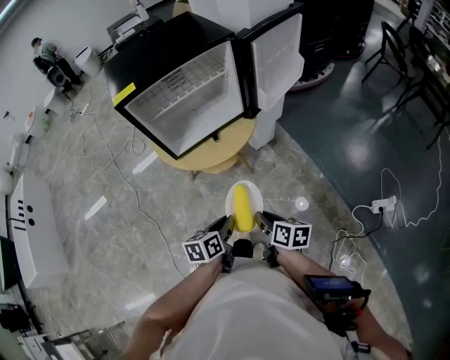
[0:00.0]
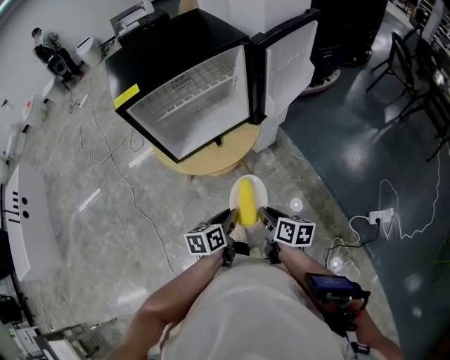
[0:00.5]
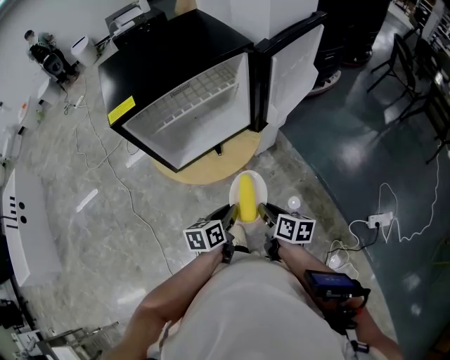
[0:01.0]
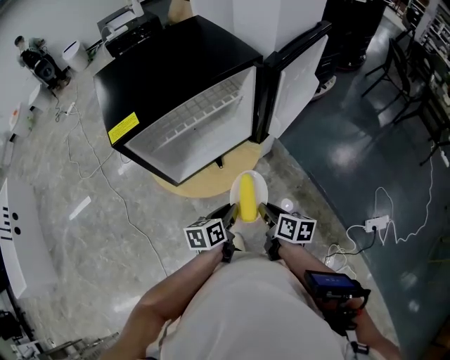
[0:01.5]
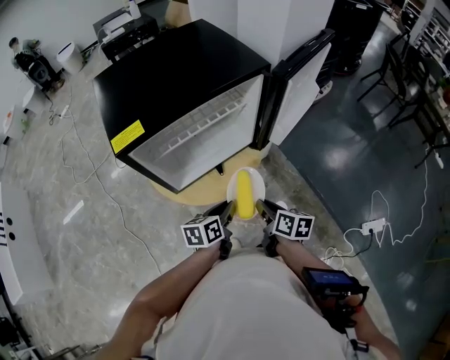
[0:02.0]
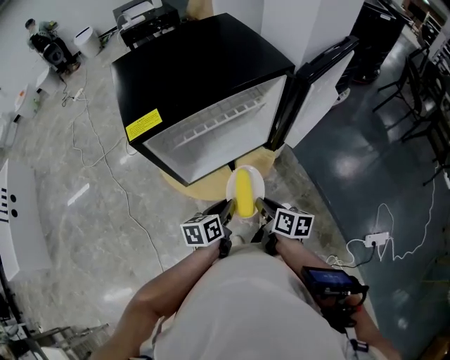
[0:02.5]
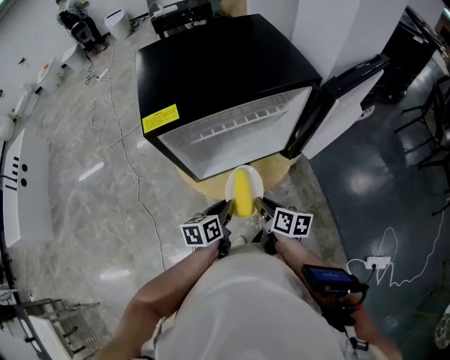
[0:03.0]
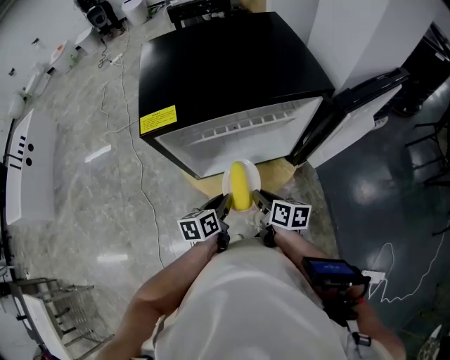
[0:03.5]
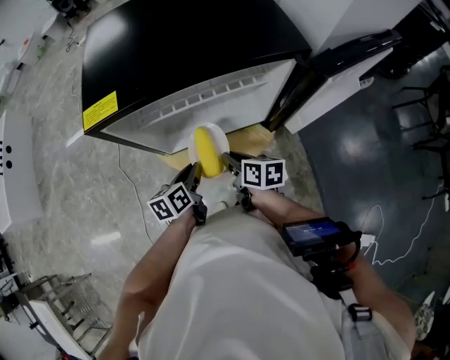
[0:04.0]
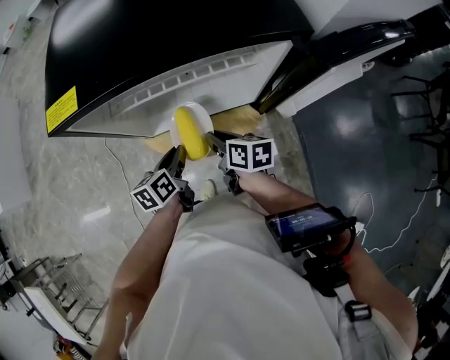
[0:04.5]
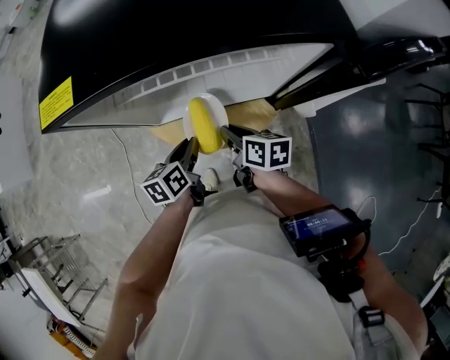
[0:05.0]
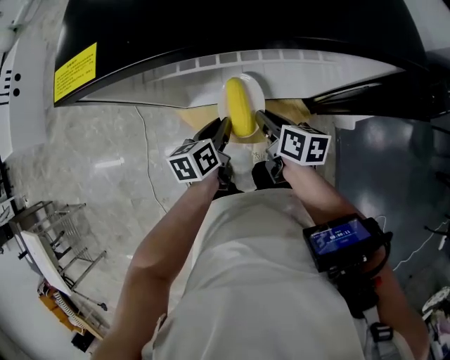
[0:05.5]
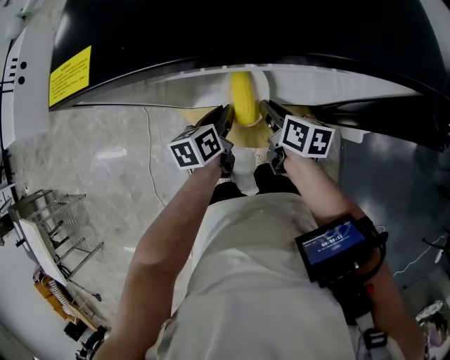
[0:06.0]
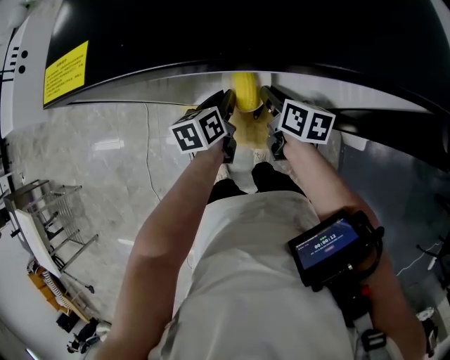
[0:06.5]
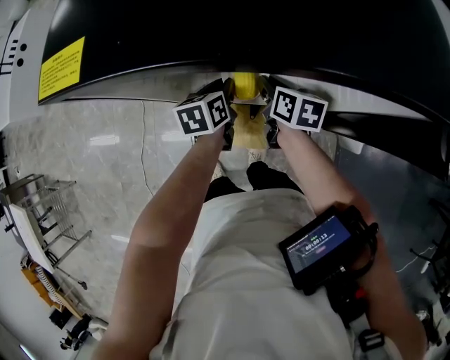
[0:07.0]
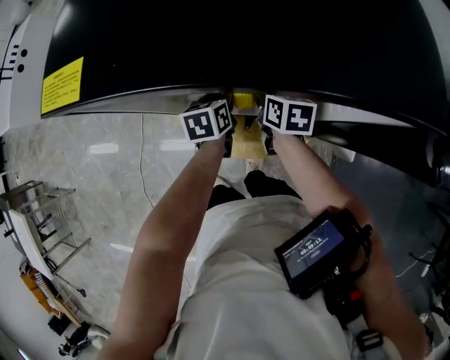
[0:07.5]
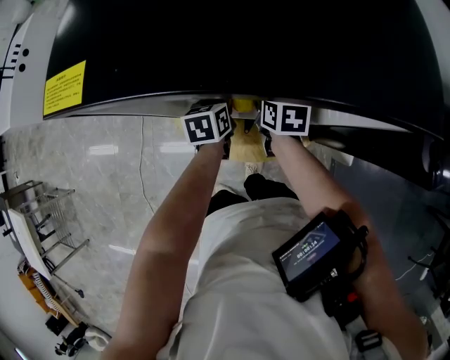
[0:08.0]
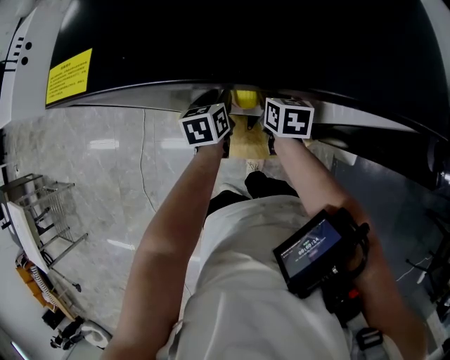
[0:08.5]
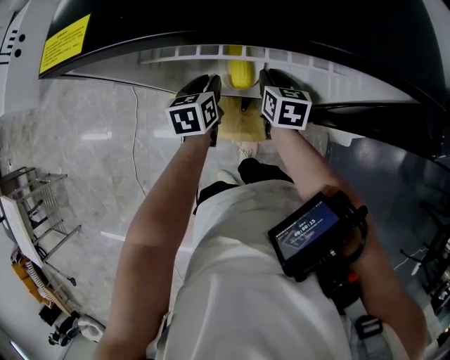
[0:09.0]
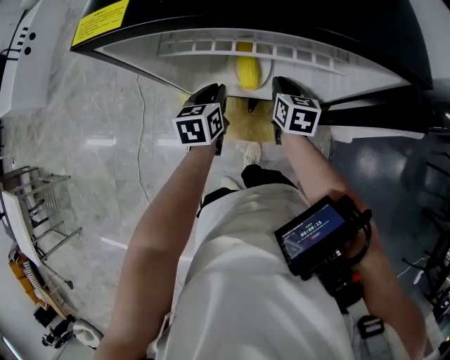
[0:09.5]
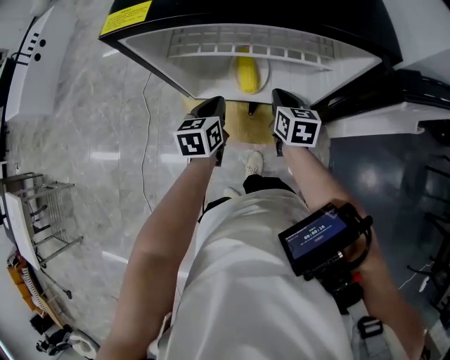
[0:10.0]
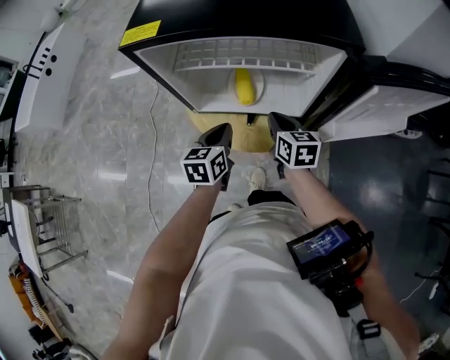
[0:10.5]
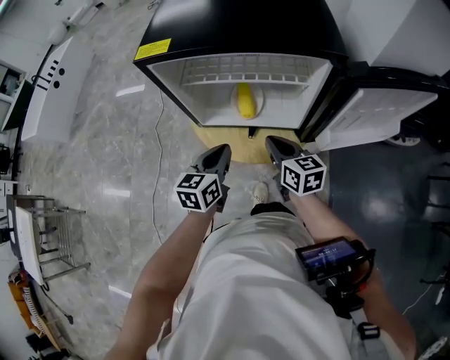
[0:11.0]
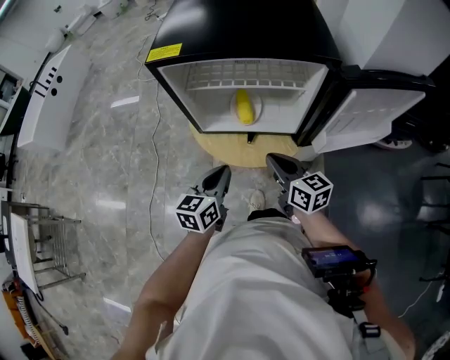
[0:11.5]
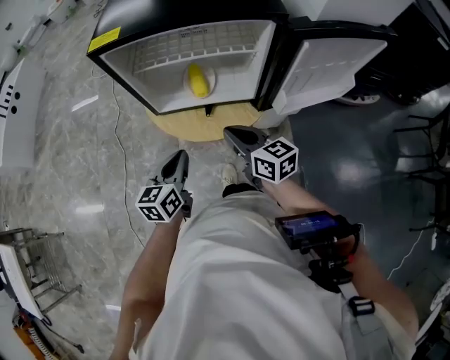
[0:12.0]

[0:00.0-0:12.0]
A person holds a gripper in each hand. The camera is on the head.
0:00.0 to 0:02.0: Both grippers move forward, some 20 cm.
0:02.0 to 0:04.0: The left gripper moves roughly 10 cm, and turns by approximately 30 degrees, while the right gripper moves approximately 15 cm, and swivels some 30 degrees.
0:04.0 to 0:06.0: The two grippers go about 10 cm forward and downward.
0:06.0 to 0:08.0: The two grippers go roughly 10 cm forward. The right gripper changes its angle by about 20 degrees.
0:08.0 to 0:10.0: Both grippers travel together backward and upward, some 10 cm.
0:10.0 to 0:12.0: The left gripper travels backward by roughly 20 cm; the right gripper heads backward and upward, covering approximately 20 cm, and swivels some 30 degrees.

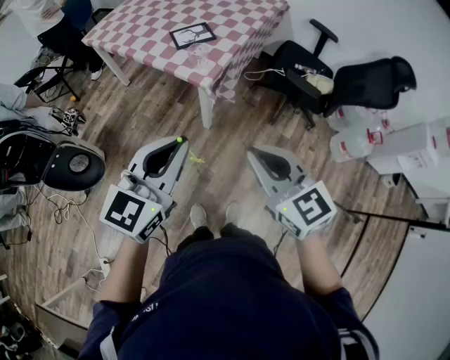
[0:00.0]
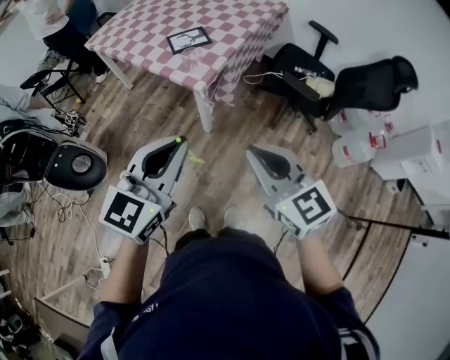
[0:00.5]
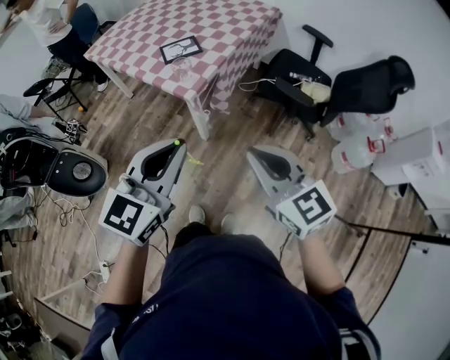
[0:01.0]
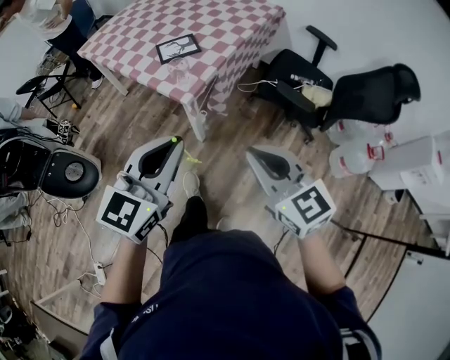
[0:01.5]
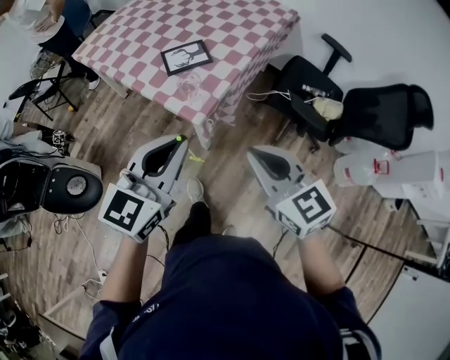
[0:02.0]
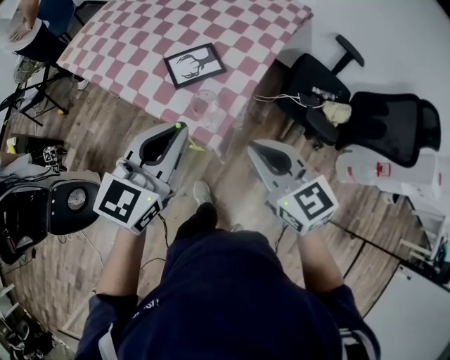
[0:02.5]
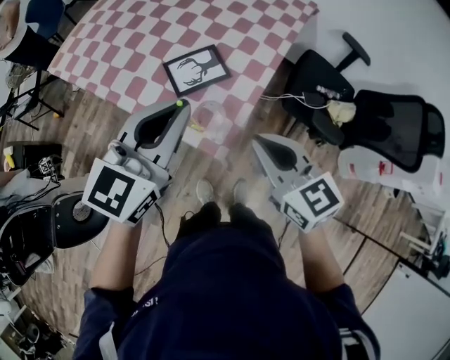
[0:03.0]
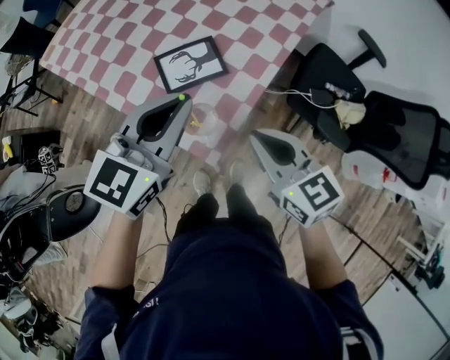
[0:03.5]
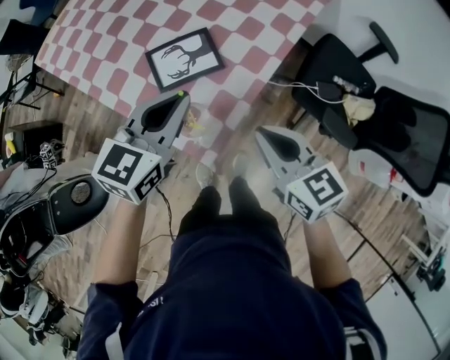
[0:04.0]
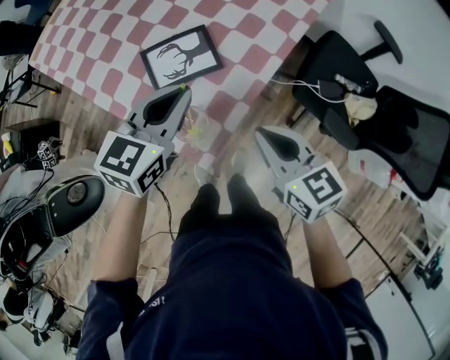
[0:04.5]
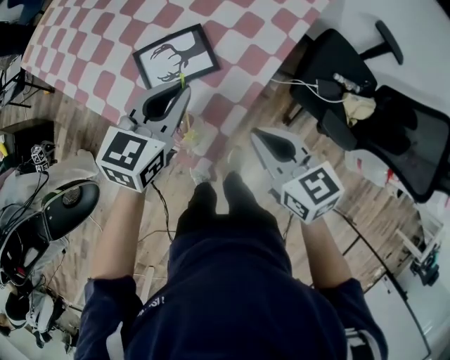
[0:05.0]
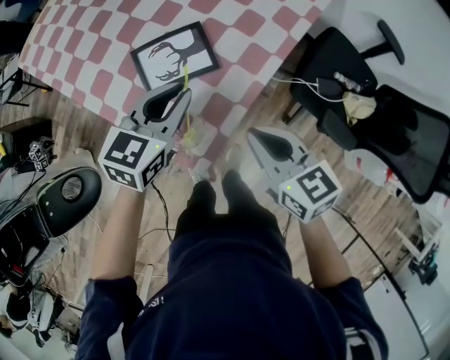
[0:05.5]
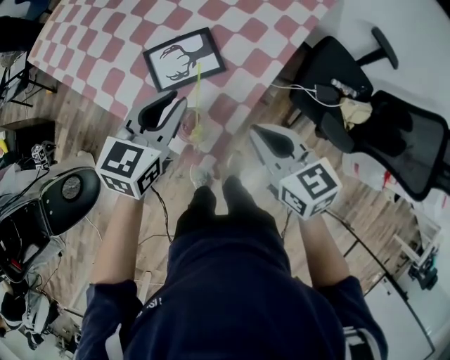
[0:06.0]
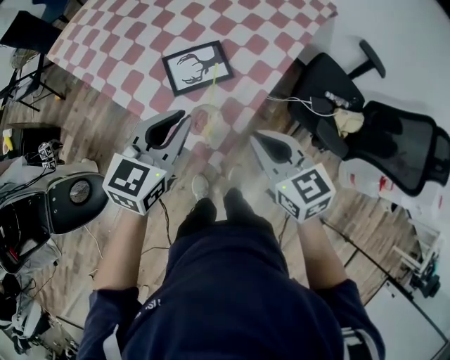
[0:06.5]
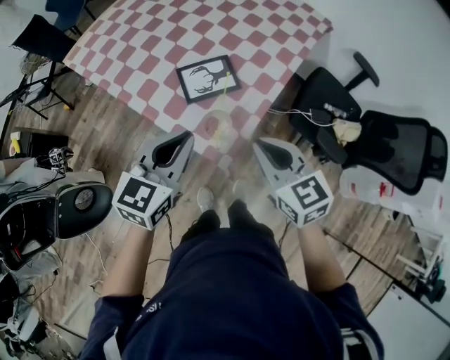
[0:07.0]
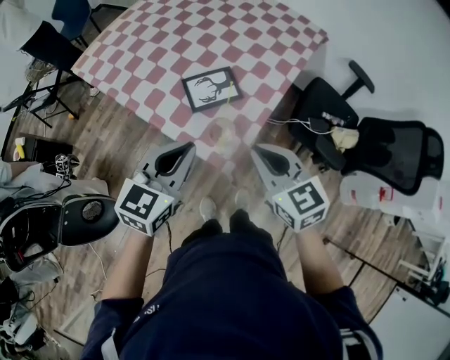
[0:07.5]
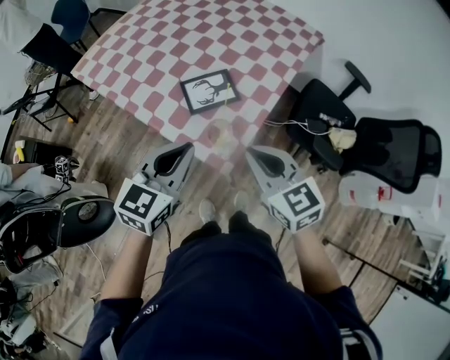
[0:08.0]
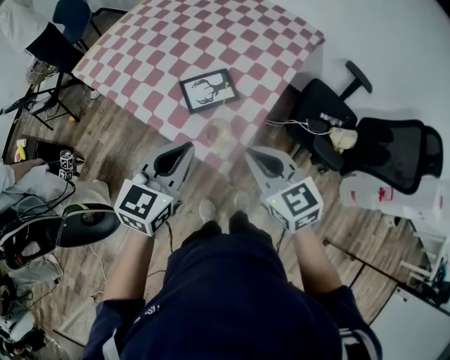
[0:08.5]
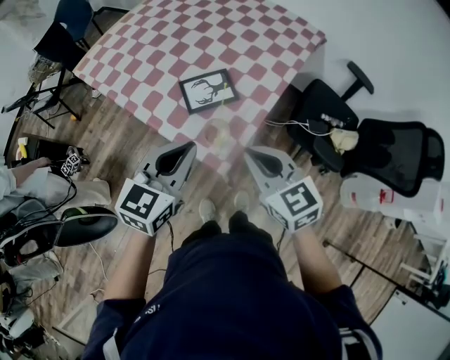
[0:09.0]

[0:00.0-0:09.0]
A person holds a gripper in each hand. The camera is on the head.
0:00.0 to 0:02.0: The two grippers go approximately 20 cm forward.
0:02.0 to 0:04.5: Both grippers move forward and downward, roughly 35 cm. The right gripper swivels roughly 20 degrees.
0:04.5 to 0:07.0: The left gripper heads backward, to the left and upward, covering about 15 cm. Meanwhile the right gripper travels upward, to the left and backward by about 15 cm.
0:07.0 to 0:09.0: The grippers make only small movements.

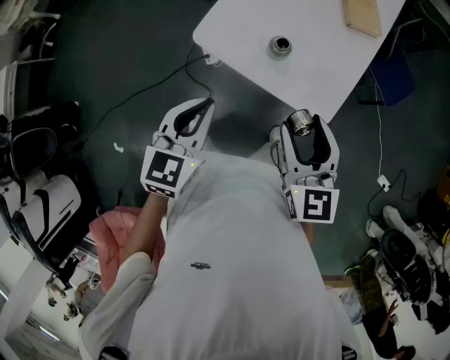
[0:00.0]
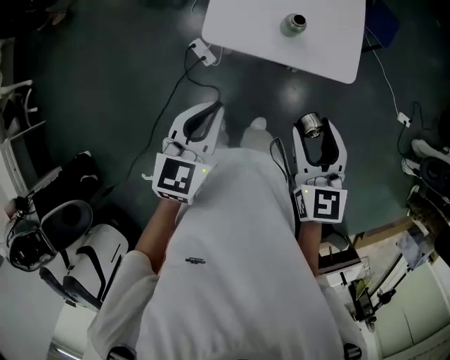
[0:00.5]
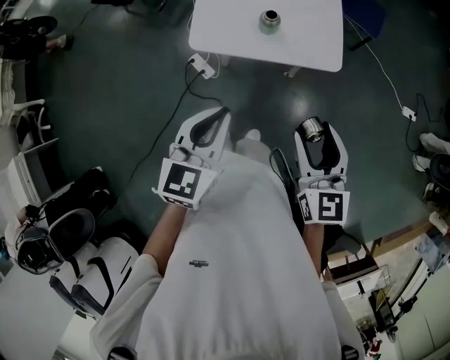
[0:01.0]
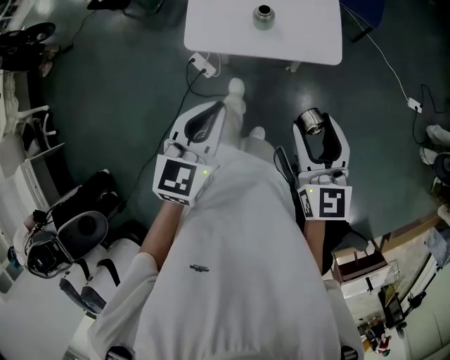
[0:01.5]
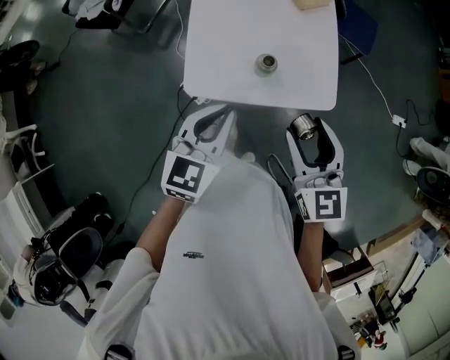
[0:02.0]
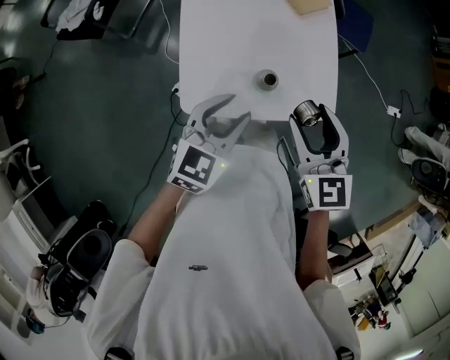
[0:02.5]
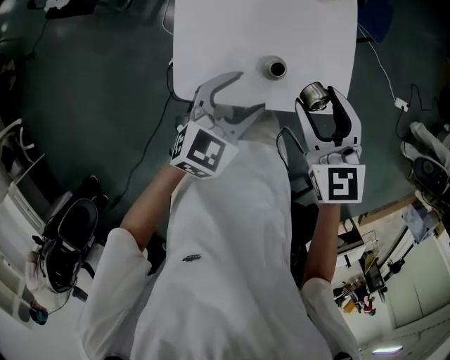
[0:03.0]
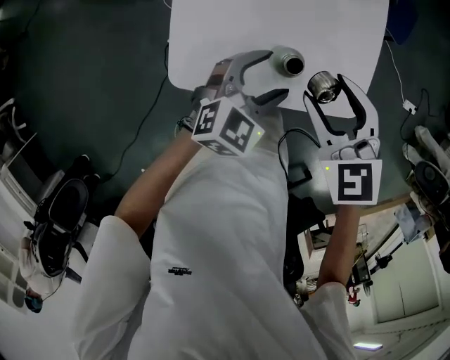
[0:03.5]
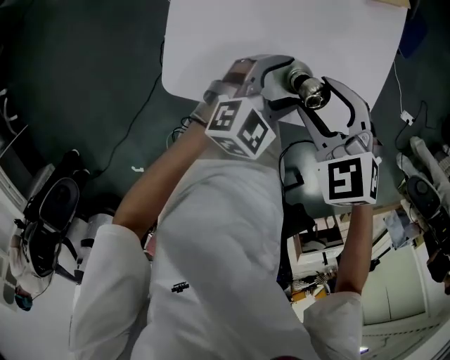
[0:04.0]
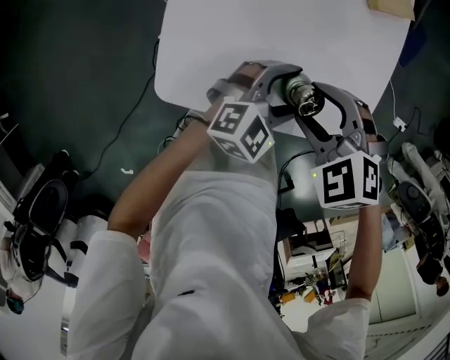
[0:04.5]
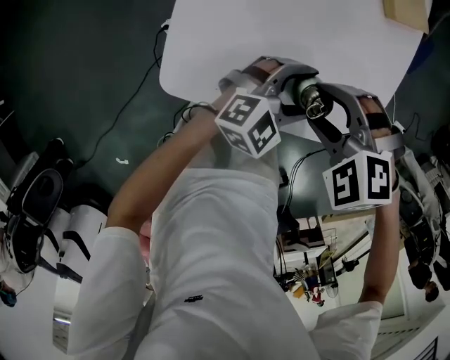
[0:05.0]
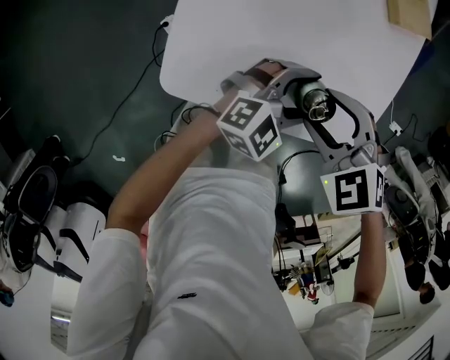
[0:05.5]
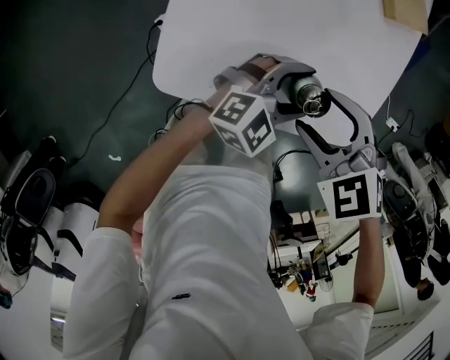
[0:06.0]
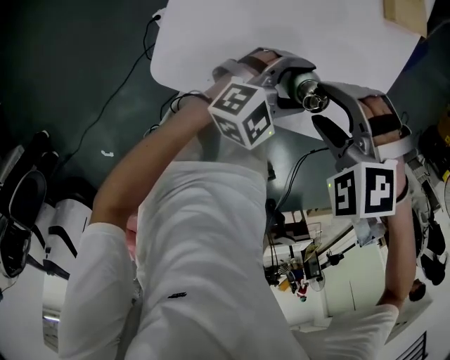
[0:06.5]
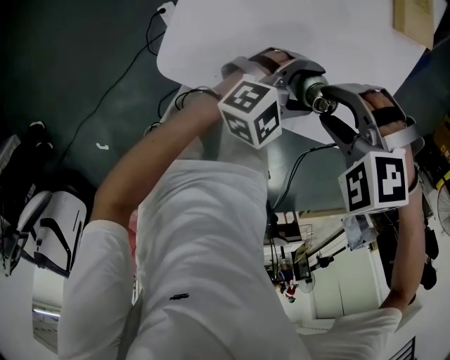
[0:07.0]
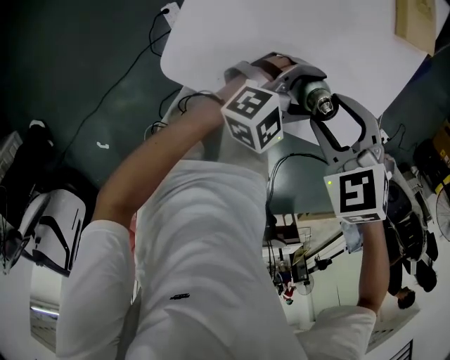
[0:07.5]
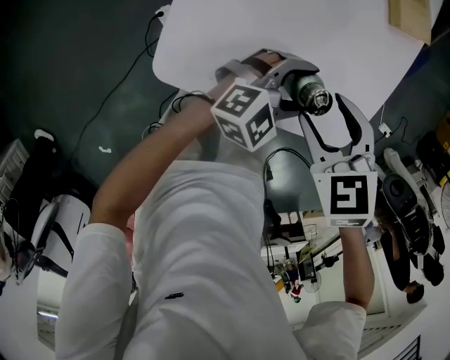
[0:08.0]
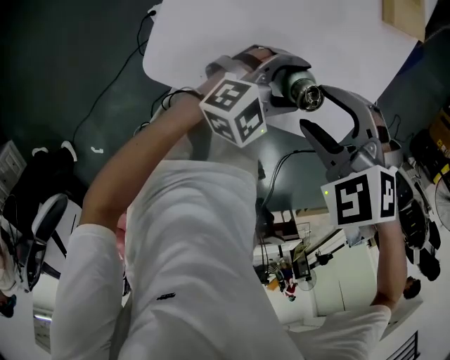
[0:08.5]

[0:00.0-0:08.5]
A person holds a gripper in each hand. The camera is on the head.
0:00.0 to 0:02.0: The right gripper goes about 5 cm to the left, and travels backward and back again, some 10 cm each way, while the left gripper heads forward, covering roughly 10 cm, and changes its angle by some 30 degrees.
0:02.0 to 0:04.0: The grippers both shift downward and forward by roughly 30 cm. The right gripper points its fingers about 40 degrees further downward, while the left gripper turns by some 30 degrees, and opens its fingers.
0:04.0 to 0:06.5: The right gripper rolls counterclockwise, seen from behind, by about 40 degrees.
0:06.5 to 0:08.5: The right gripper swivels about 20 degrees.
